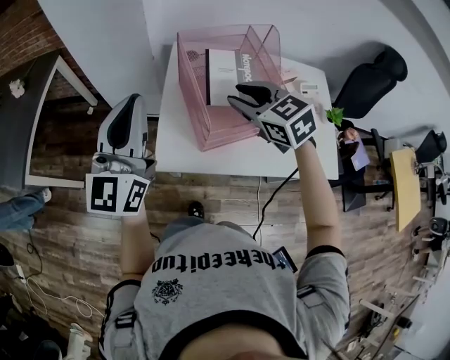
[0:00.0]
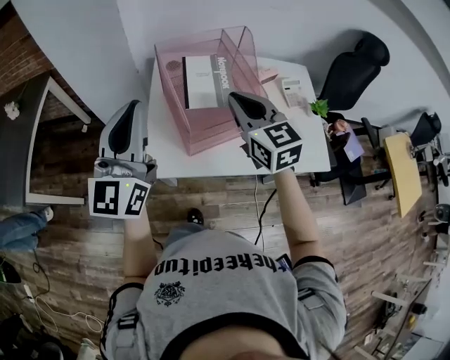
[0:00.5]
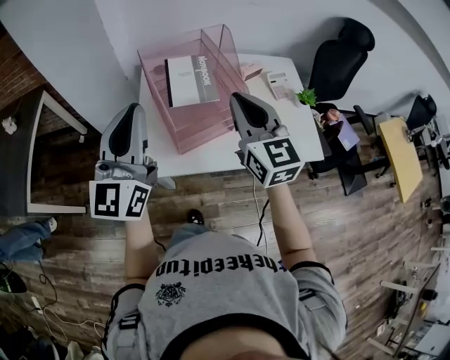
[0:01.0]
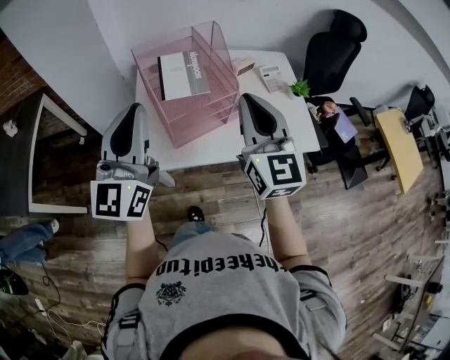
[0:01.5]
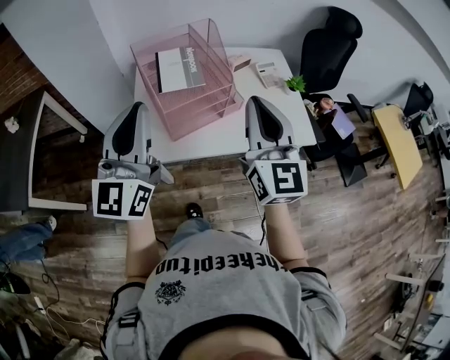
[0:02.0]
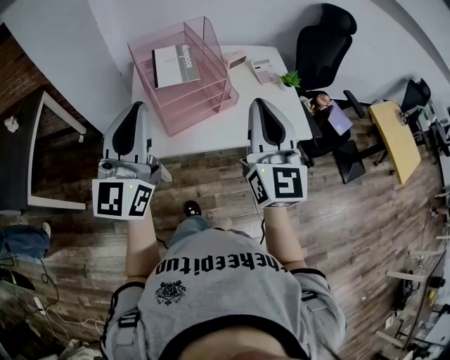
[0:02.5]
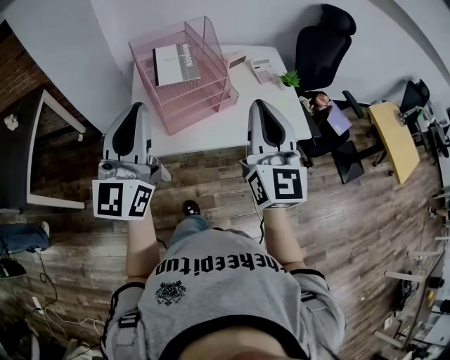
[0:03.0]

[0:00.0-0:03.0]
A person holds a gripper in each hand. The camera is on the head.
0:00.0 to 0:01.5: The right gripper moves backward, to the right and upward, some 25 cm, angles its fingers upward, by some 40 degrees, and closes its fingers. Meanwhile the left gripper goes some 15 cm to the right and backward.
0:01.5 to 0:03.0: The right gripper goes approximately 10 cm backward and to the right. The left gripper moves backward, about 5 cm.

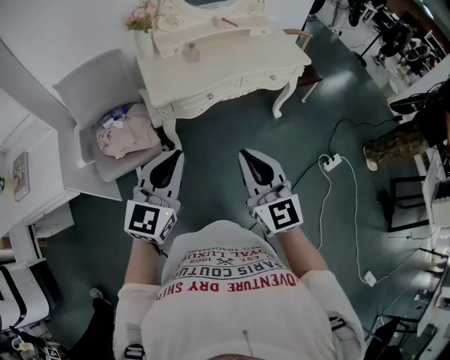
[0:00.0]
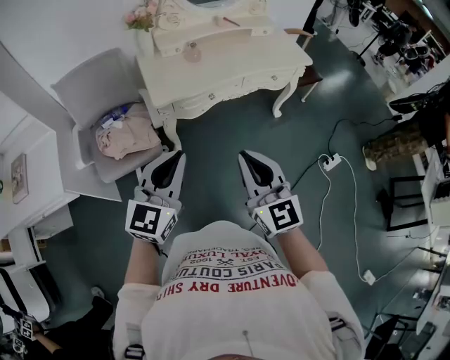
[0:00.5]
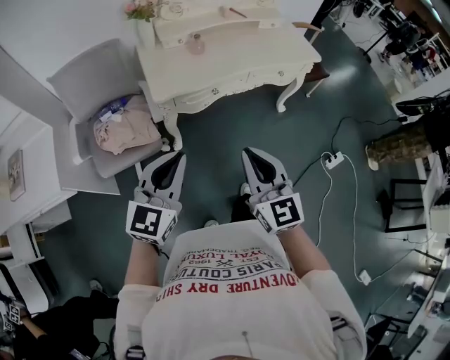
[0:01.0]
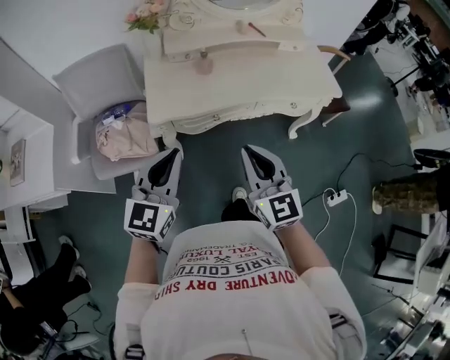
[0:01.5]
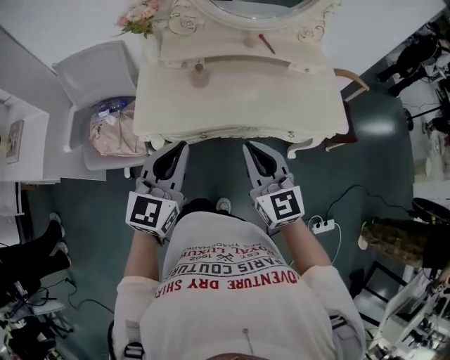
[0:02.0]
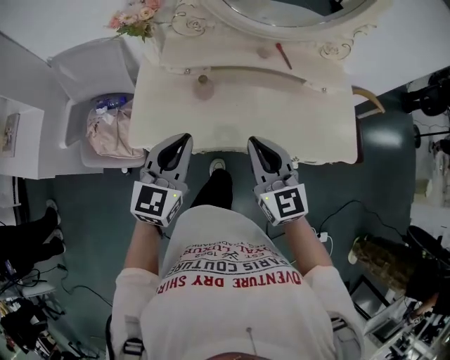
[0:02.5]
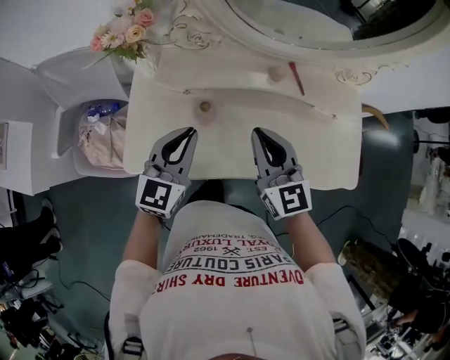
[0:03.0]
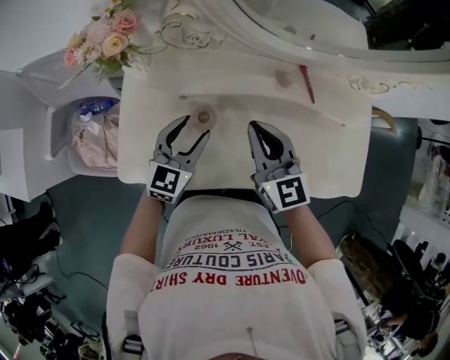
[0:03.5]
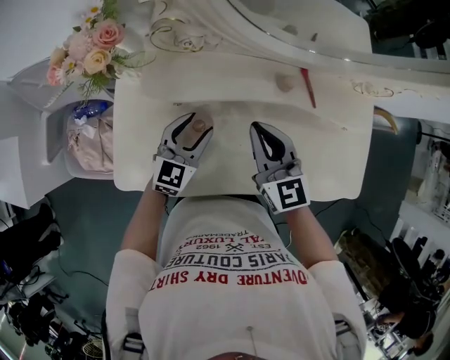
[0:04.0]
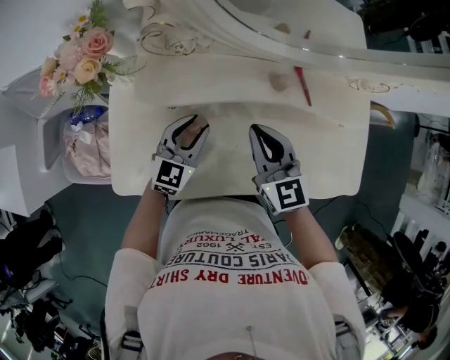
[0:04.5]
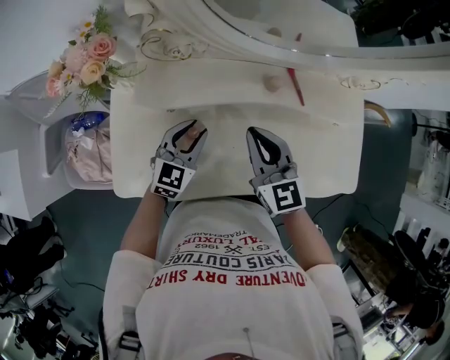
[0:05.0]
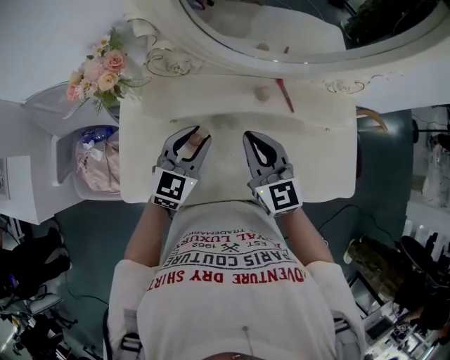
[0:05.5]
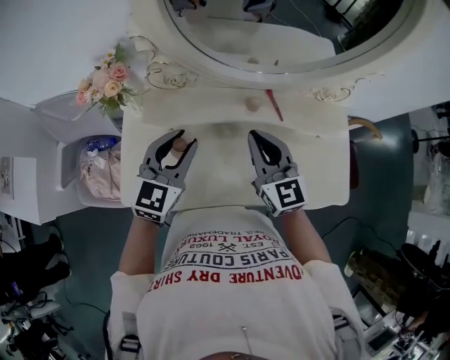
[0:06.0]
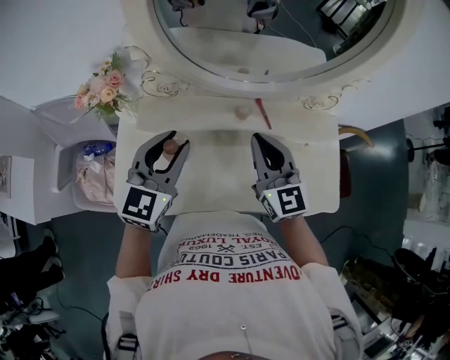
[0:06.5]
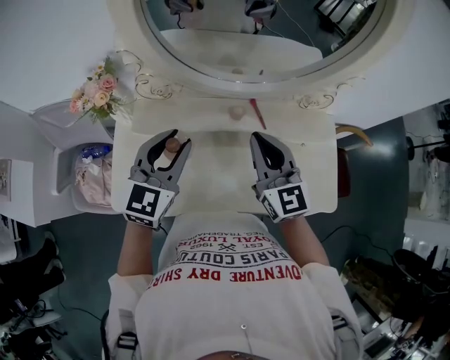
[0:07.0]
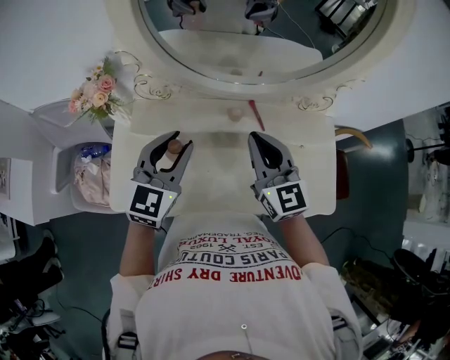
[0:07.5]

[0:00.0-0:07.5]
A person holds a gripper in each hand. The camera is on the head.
0:00.0 to 0:02.0: Both grippers move forward and to the right, roughly 40 cm. The left gripper turns by some 20 degrees; the right gripper rotates some 20 degrees.
0:02.0 to 0:04.0: The right gripper goes approximately 40 cm forward. The left gripper travels forward and downward by approximately 40 cm, and opens.
0:04.0 to 0:05.5: The left gripper travels upward by about 10 cm, and closes its fingers. Meanwhile the right gripper ends up some 5 cm from where it was.
0:05.5 to 0:07.5: The right gripper moves upward and to the right, about 15 cm. Meanwhile the left gripper moves upward, roughly 15 cm.

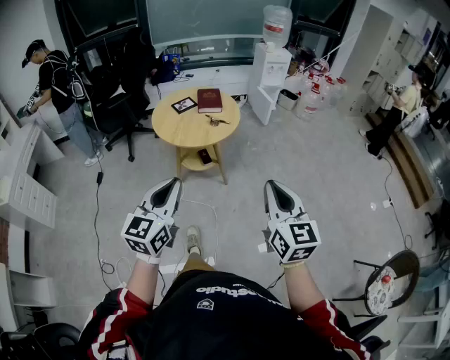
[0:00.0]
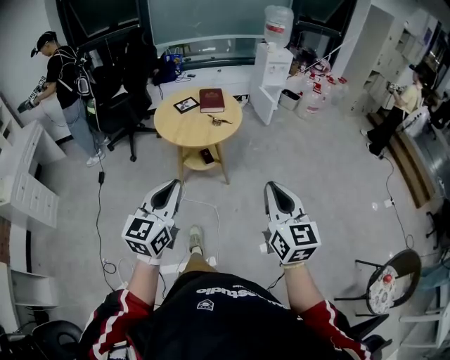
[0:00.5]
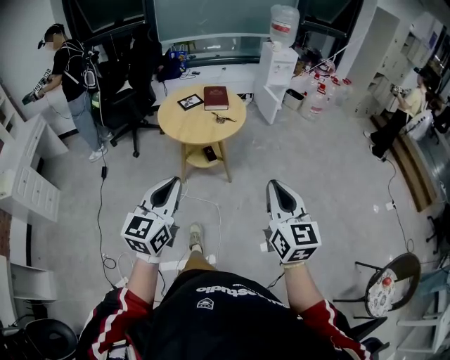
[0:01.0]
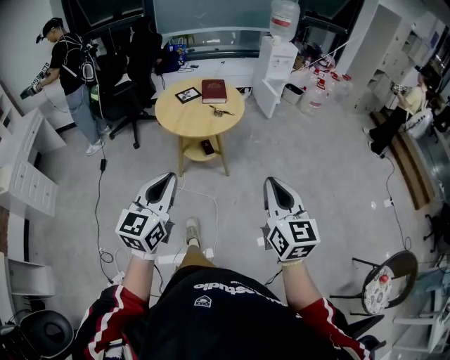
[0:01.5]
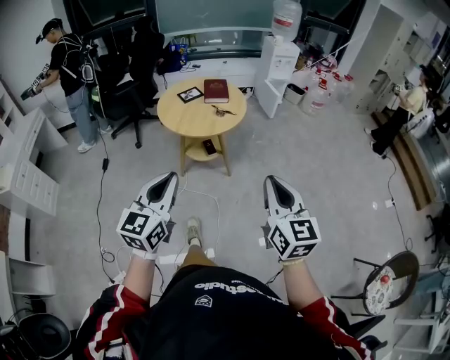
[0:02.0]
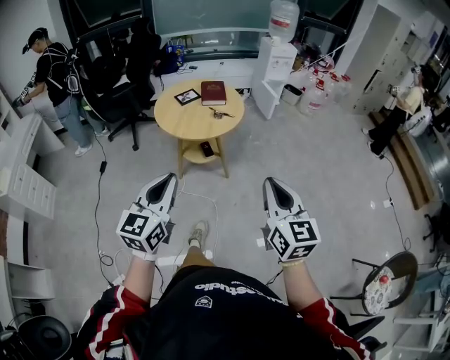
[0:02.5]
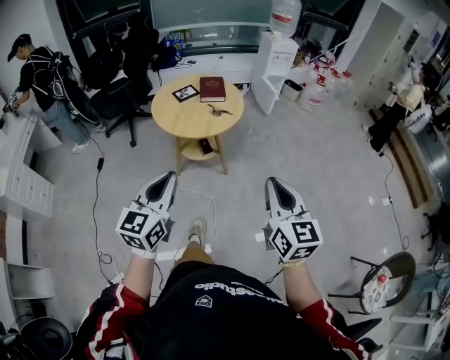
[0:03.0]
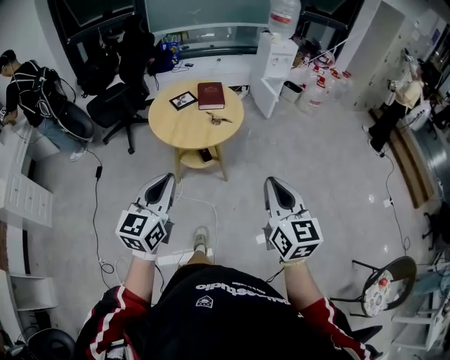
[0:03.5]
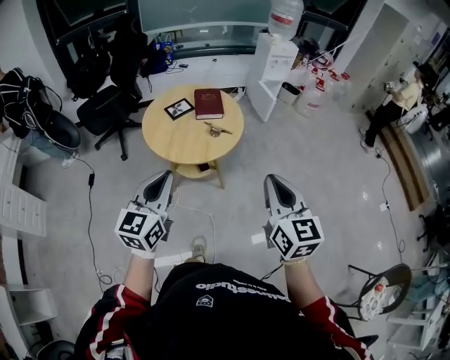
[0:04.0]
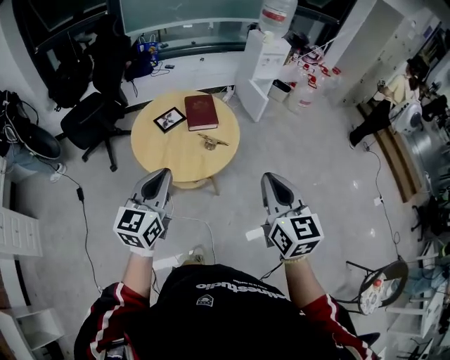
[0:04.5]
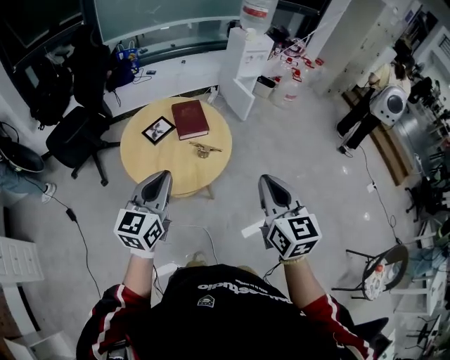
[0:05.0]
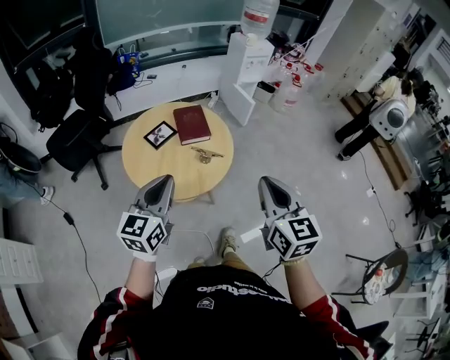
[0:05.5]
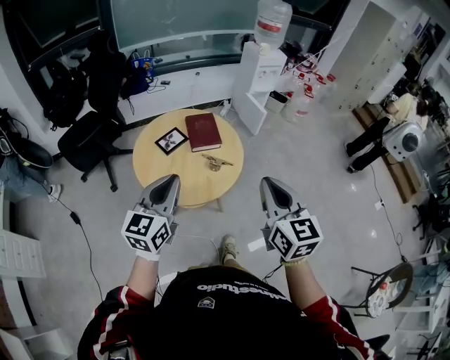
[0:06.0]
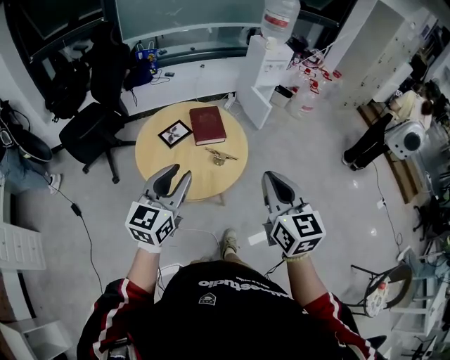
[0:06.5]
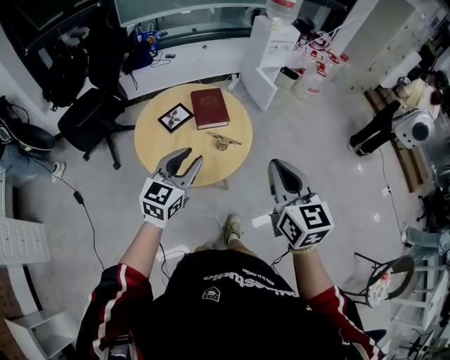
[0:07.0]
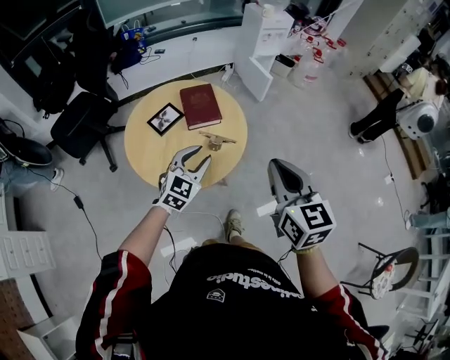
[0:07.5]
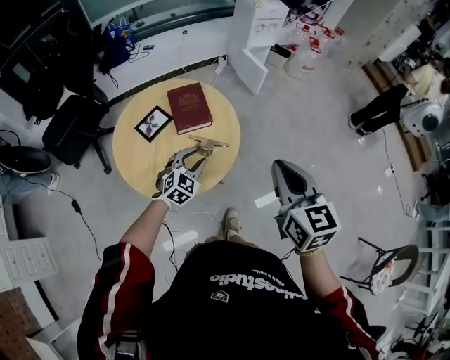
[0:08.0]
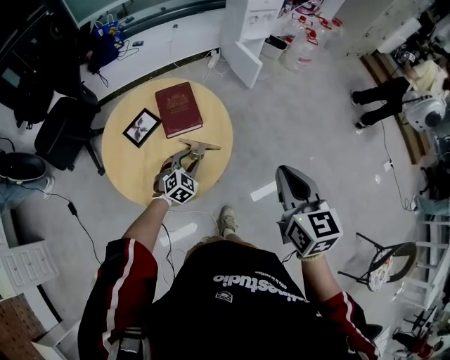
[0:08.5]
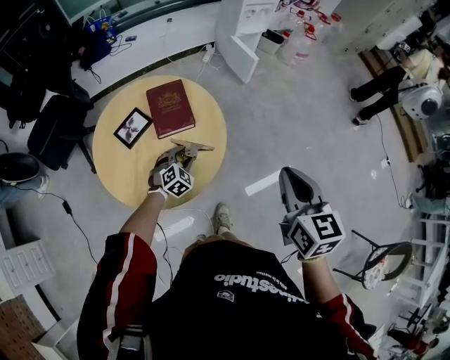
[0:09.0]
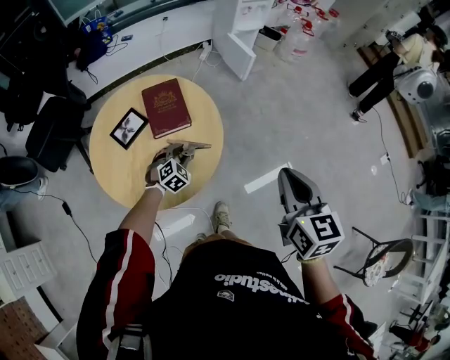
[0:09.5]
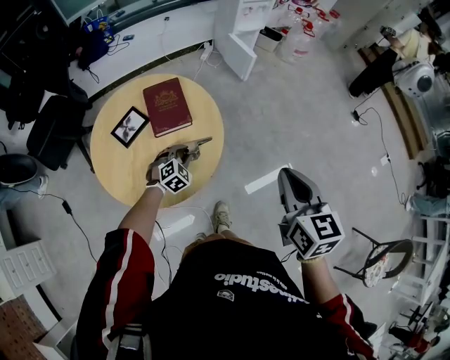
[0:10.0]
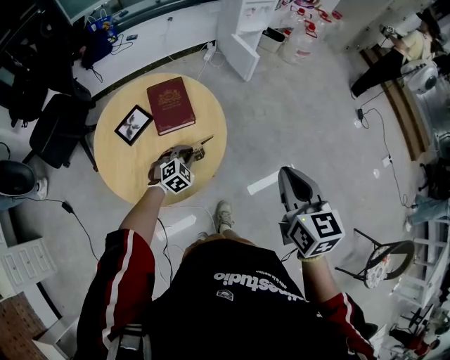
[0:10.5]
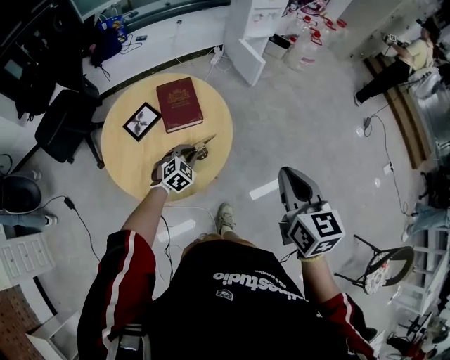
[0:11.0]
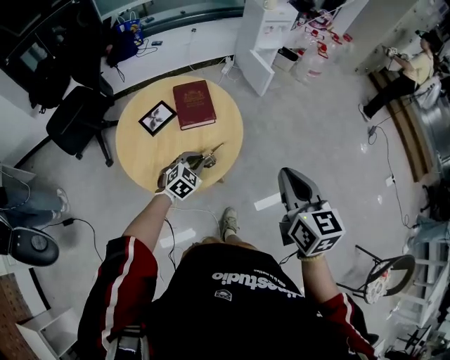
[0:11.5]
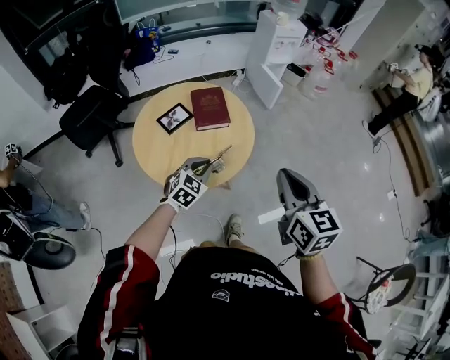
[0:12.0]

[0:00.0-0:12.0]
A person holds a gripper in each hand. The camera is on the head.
0:00.0 to 0:02.0: The grippers stay close to where they were, moving slightly.
0:02.0 to 0:04.0: Both grippers travel together forward, roughly 25 cm.
0:04.0 to 0:06.0: The left gripper heads forward, covering about 20 cm. The right gripper goes approximately 20 cm forward and to the left.
0:06.0 to 0:08.0: The left gripper heads downward, forward and to the right, covering roughly 35 cm, rotates roughly 50 degrees, and opens its fingers; the right gripper heads forward, downward and to the right, covering about 15 cm.
0:08.0 to 0:10.0: The right gripper travels to the right and forward by approximately 10 cm; the left gripper goes approximately 15 cm downward and forward.
0:10.0 to 0:12.0: The right gripper goes approximately 15 cm backward and to the left, while the left gripper heads backward and upward, covering roughly 20 cm, and rotates approximately 20 degrees.

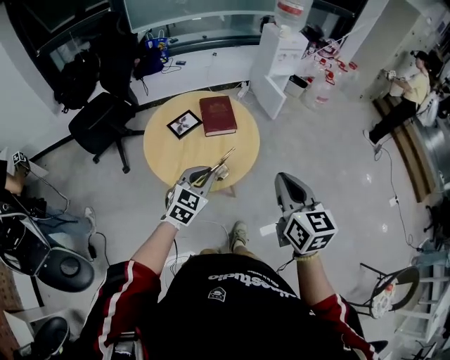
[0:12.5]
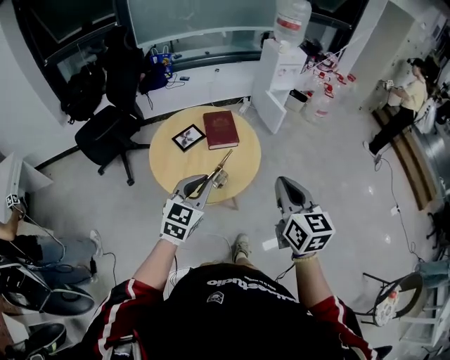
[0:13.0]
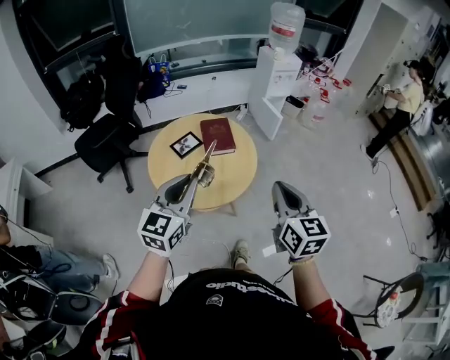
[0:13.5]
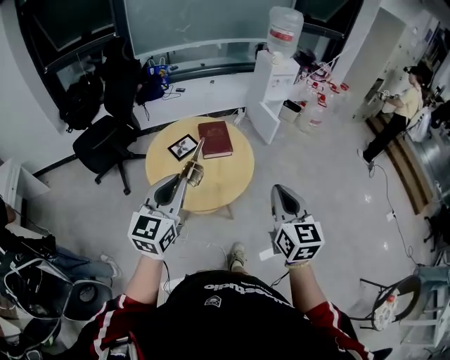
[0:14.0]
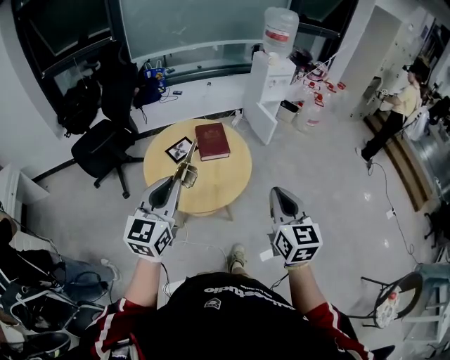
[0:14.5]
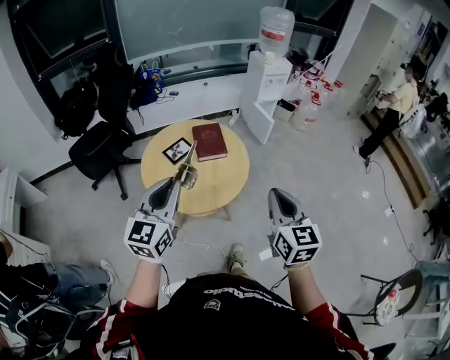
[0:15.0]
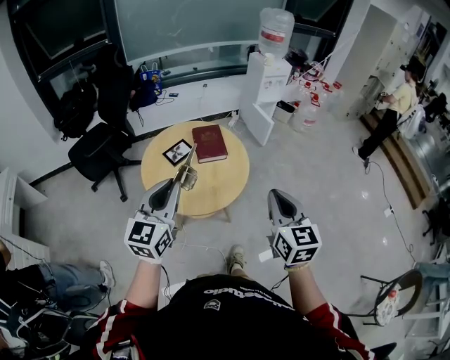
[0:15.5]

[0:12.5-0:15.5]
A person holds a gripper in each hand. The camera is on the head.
0:12.5 to 0:14.0: The left gripper shifts about 20 cm upward, and rotates about 30 degrees.
0:14.0 to 0:15.5: Both grippers stay put.
